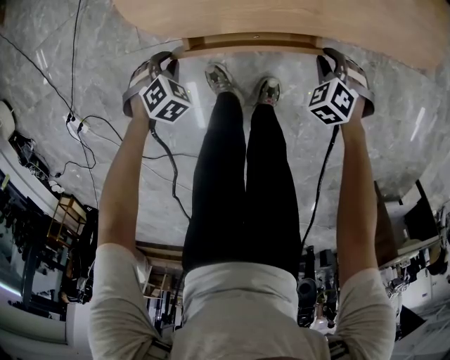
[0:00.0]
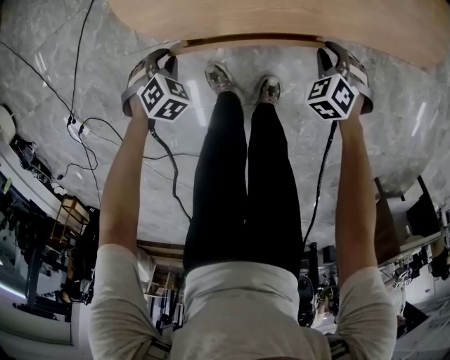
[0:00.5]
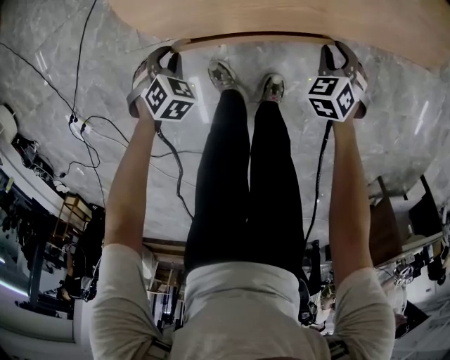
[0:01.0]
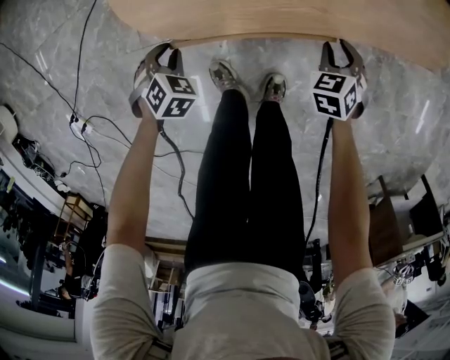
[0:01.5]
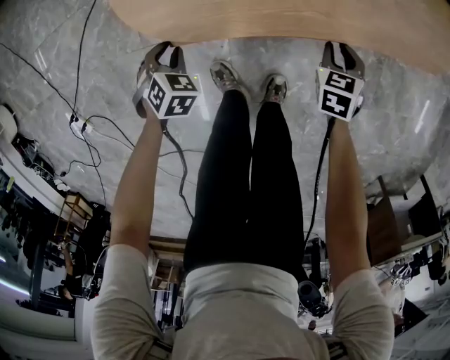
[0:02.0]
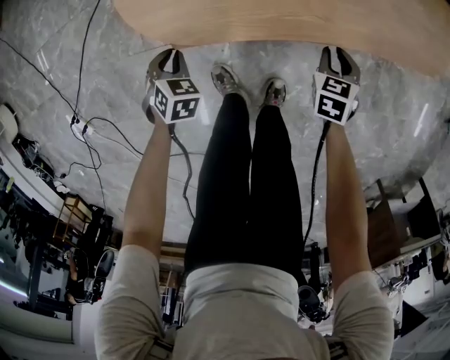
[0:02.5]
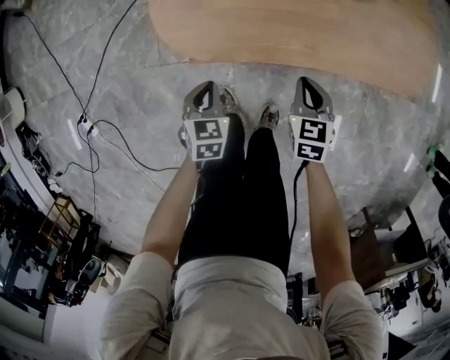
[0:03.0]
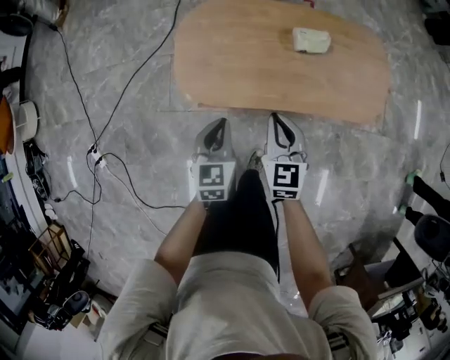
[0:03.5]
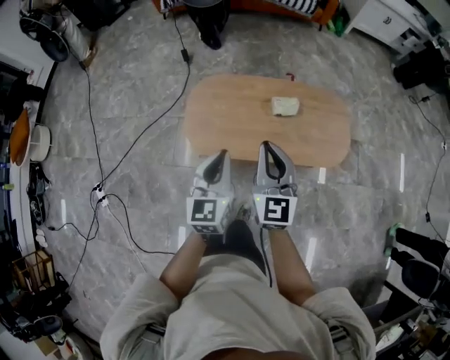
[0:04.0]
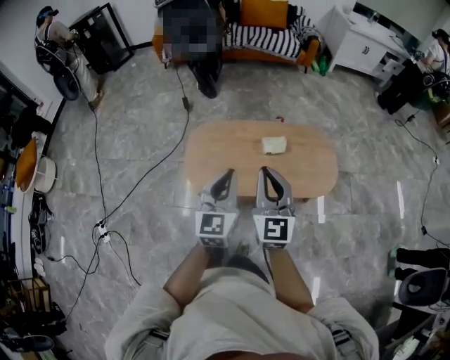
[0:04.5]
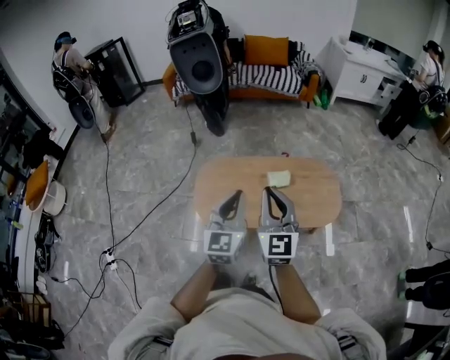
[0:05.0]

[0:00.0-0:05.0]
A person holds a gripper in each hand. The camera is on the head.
0.0 to 2.5 s: The right gripper rotates around the line of its fingers by approximately 50 degrees, clockwise from behind. The left gripper rotates some 30 degrees.
2.5 to 5.0 s: The grippers both shift upward by approximately 70 cm. The left gripper points its fingers about 70 degrees further upward. Meanwhile the right gripper tips its fingers upward by roughly 60 degrees, and closes.

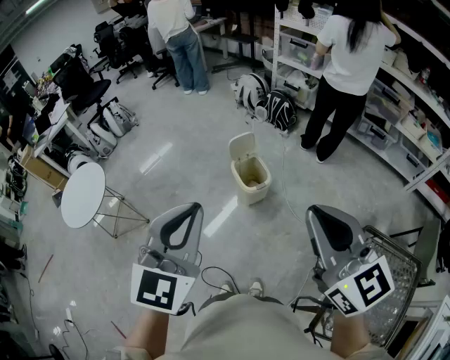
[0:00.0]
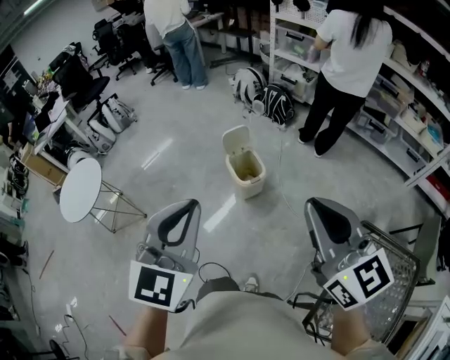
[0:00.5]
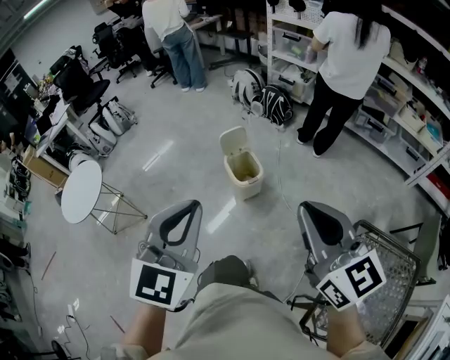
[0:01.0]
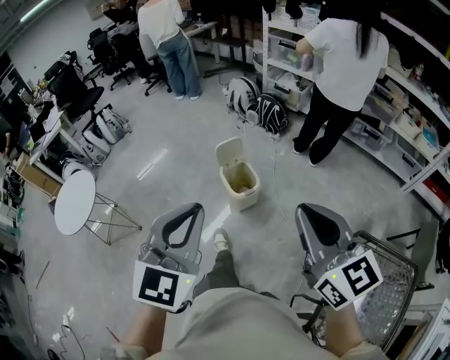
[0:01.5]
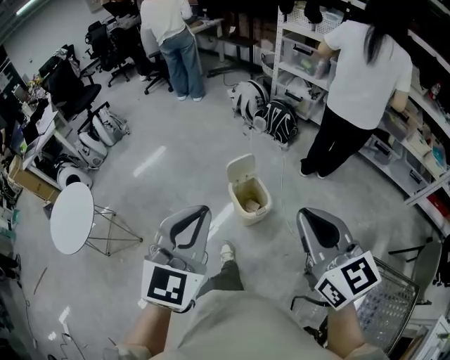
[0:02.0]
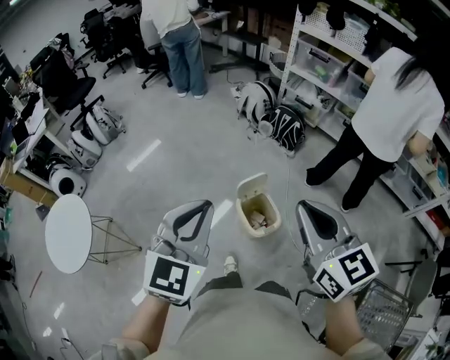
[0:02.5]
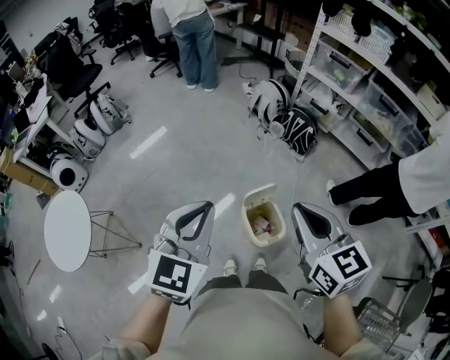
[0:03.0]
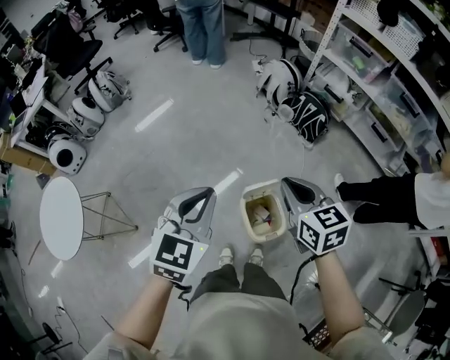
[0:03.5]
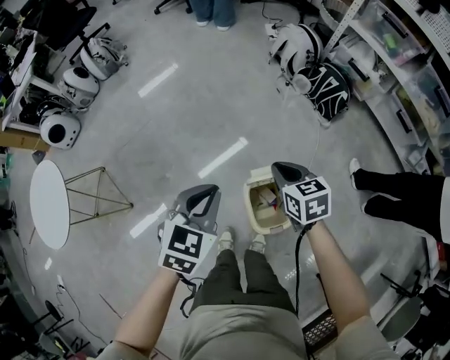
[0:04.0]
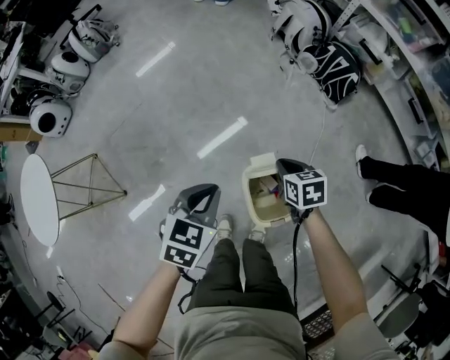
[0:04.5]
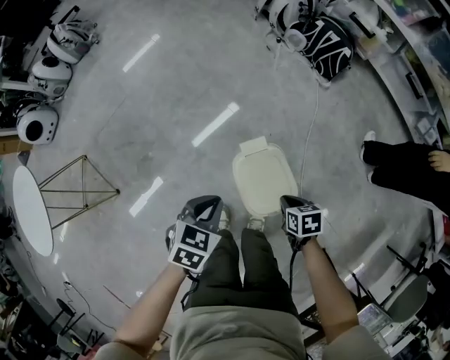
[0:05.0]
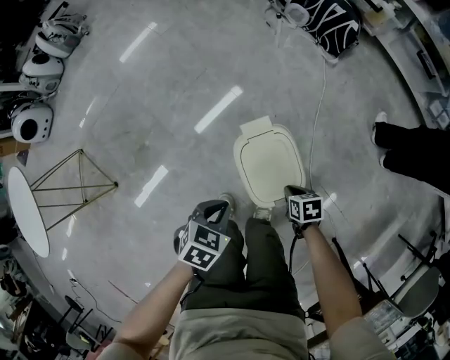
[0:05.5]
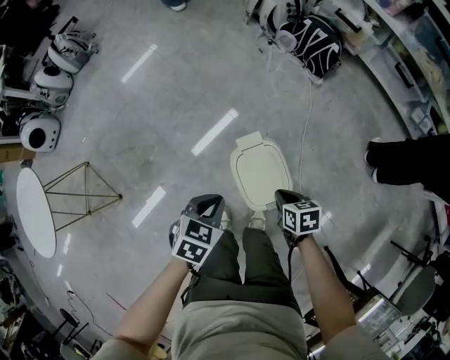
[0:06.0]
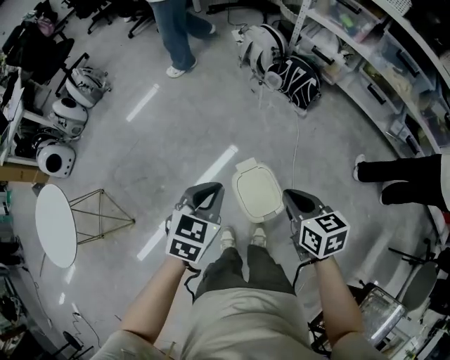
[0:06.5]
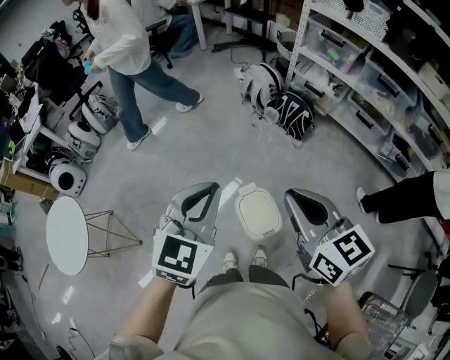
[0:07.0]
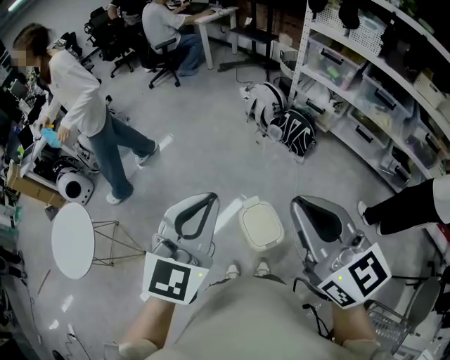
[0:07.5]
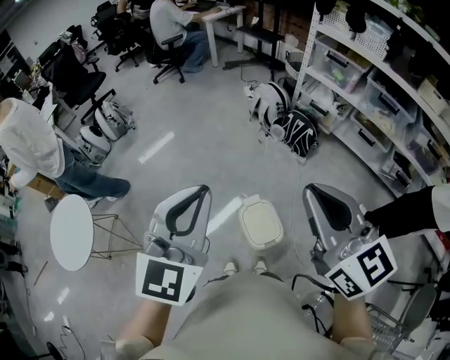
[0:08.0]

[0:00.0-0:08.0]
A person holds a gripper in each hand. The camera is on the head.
0.0 to 2.0 s: Both grippers move forward, about 20 cm.
2.0 to 4.0 s: The grippers both shift forward and downward by some 50 cm. The left gripper swivels some 30 degrees; the right gripper points its fingers some 40 degrees further downward.
4.0 to 6.0 s: Both grippers move downward and backward, some 25 cm. The right gripper turns by roughly 30 degrees, while the left gripper changes its angle by about 20 degrees.
6.0 to 8.0 s: The two grippers go about 60 cm upward. The left gripper points its fingers approximately 50 degrees further upward. Meanwhile the right gripper tips its fingers upward by approximately 60 degrees.

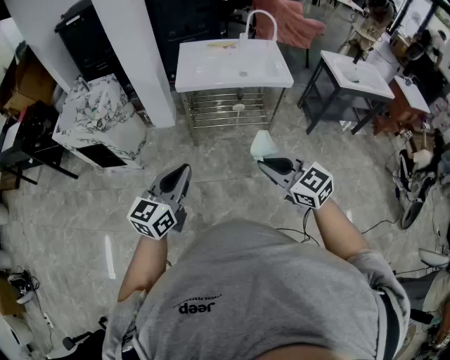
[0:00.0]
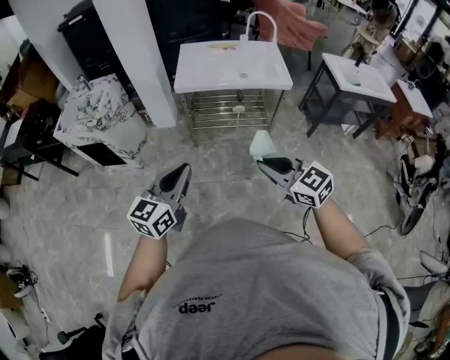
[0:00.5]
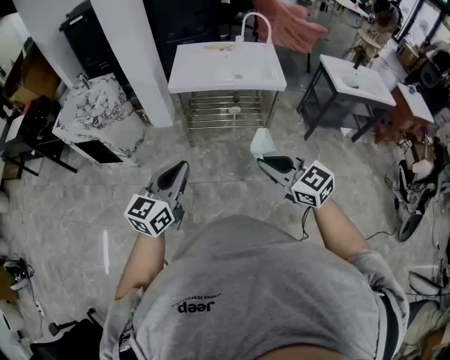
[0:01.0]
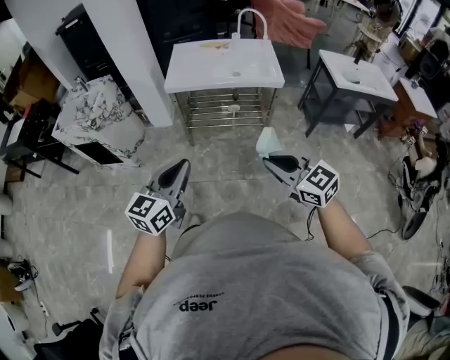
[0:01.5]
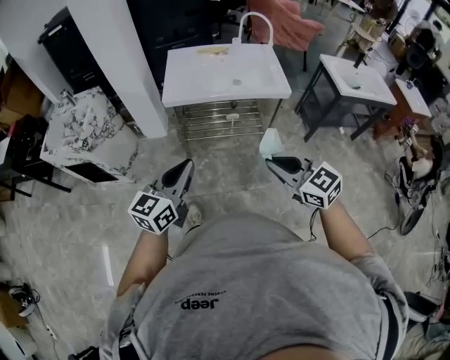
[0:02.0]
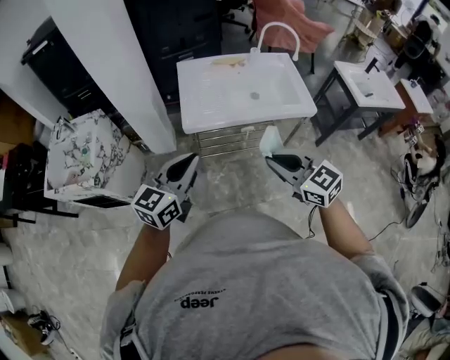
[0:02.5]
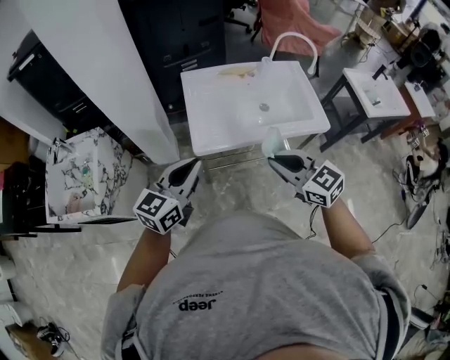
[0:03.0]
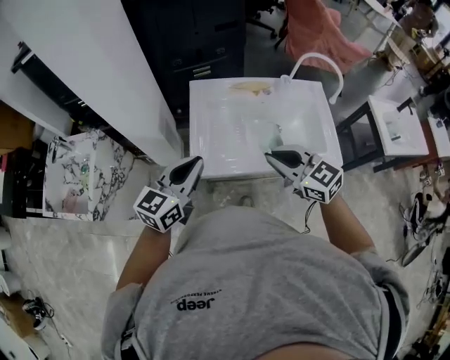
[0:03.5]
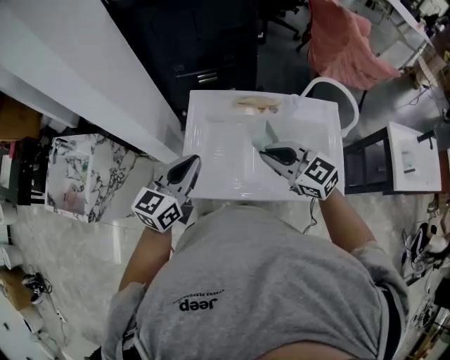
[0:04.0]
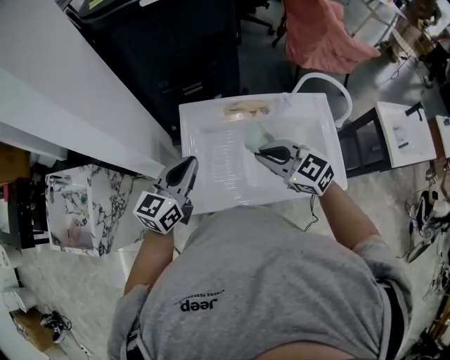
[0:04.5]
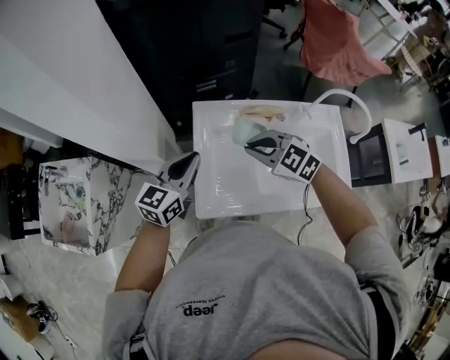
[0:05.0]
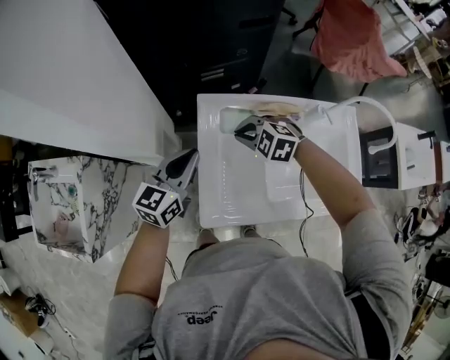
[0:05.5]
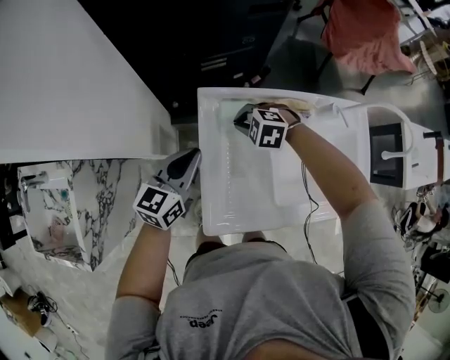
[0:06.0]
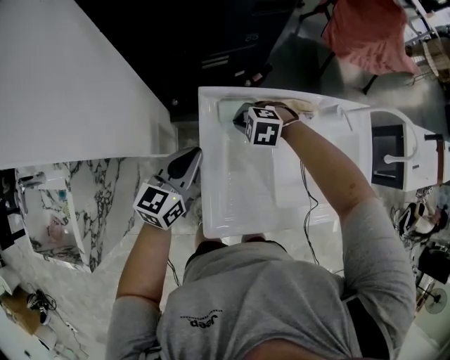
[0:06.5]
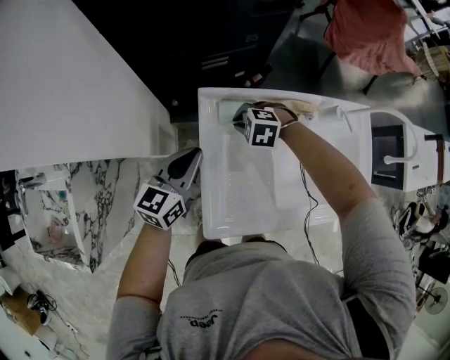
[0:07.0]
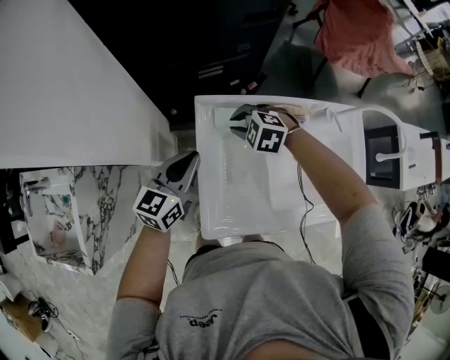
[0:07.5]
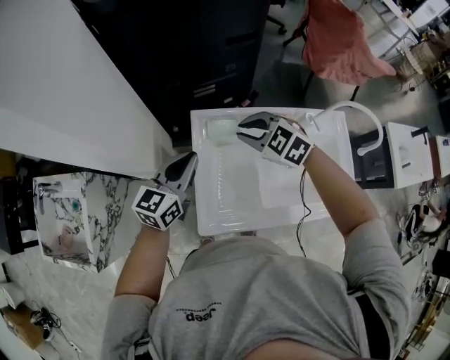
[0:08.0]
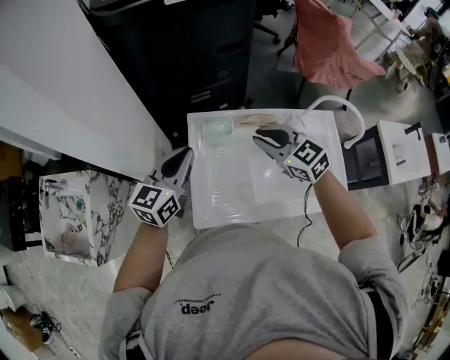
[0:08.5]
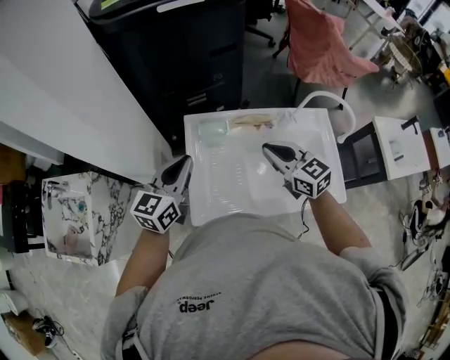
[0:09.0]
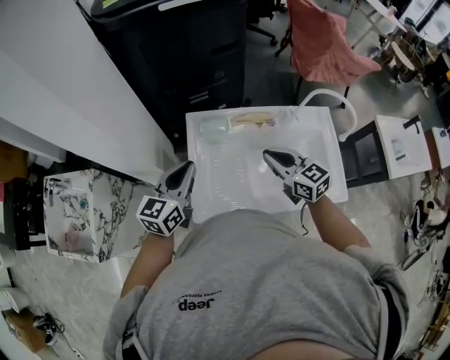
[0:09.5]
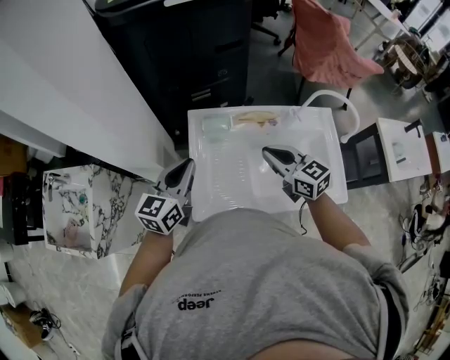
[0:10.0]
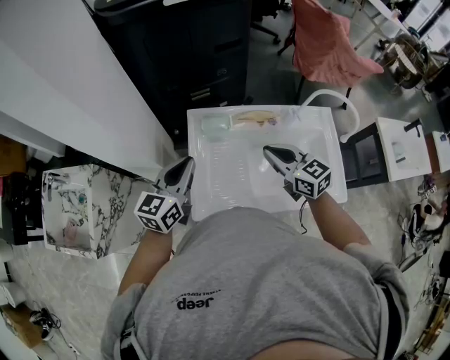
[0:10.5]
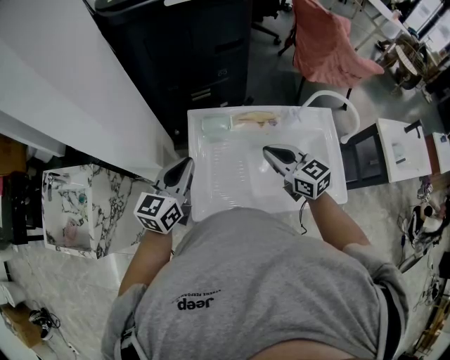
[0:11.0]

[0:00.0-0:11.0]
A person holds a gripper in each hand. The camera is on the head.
0.0 to 2.0 s: Both grippers travel together forward and to the right, approximately 15 cm.
2.0 to 3.5 s: Both grippers are carried forward, approximately 50 cm.
3.5 to 5.5 s: The two grippers go approximately 30 cm forward and downward. The right gripper angles its fingers downward, by about 30 degrees.
5.5 to 7.5 s: The left gripper changes place by roughly 5 cm, while the right gripper shifts approximately 5 cm forward.
7.5 to 9.0 s: The left gripper travels upward and backward by some 15 cm; the right gripper heads upward, backward and to the right, covering roughly 30 cm, and tips its fingers upward by roughly 40 degrees.
9.0 to 11.0 s: The grippers stay close to where they were, moving slightly.

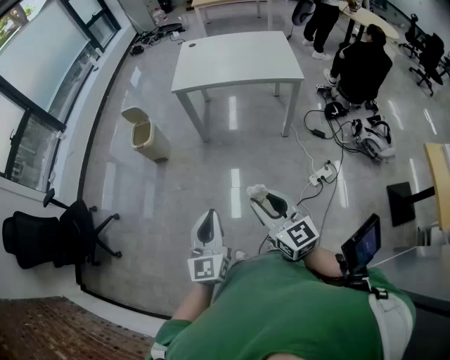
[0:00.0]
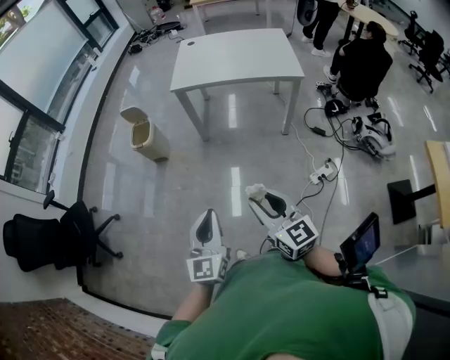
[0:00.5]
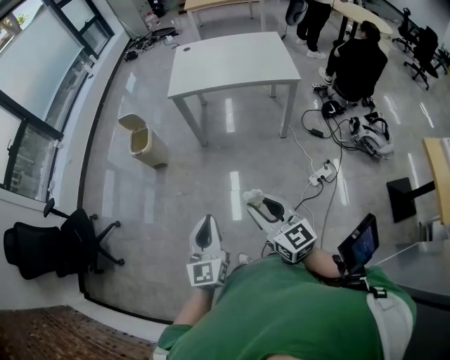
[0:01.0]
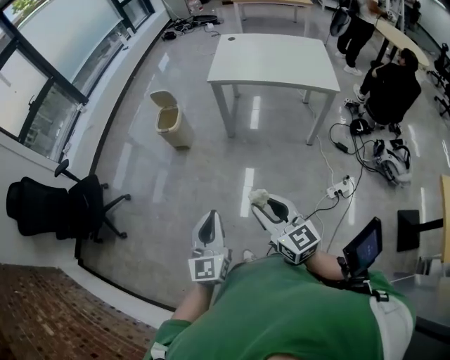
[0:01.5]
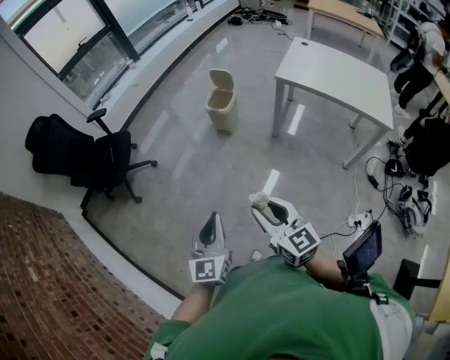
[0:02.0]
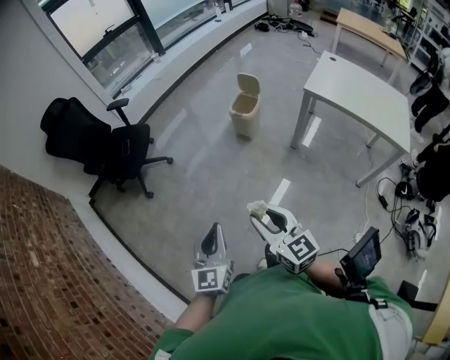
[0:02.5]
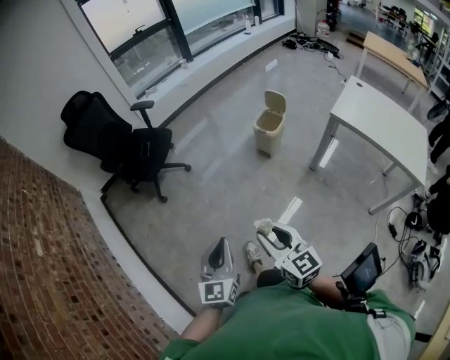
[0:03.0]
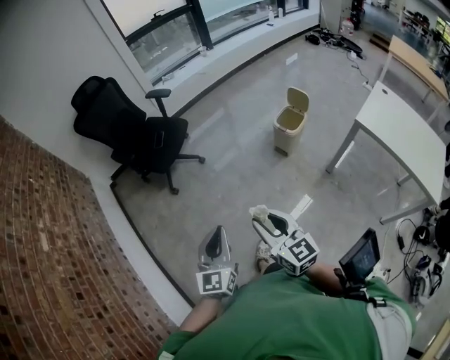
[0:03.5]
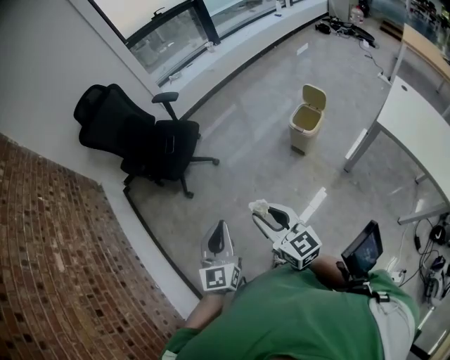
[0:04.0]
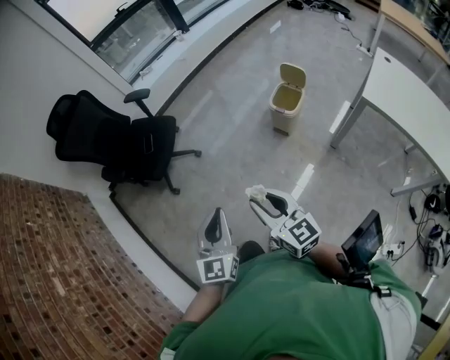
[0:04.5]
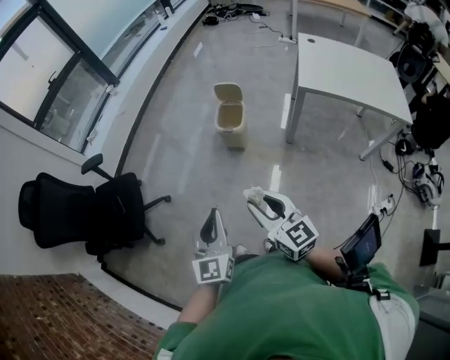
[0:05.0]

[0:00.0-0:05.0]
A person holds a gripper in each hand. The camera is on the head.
0.0 to 2.5 s: The right gripper moves about 35 cm, and rotates about 40 degrees. Meanwhile the left gripper shifts by roughly 30 cm, and turns by about 30 degrees.
2.5 to 5.0 s: The left gripper moves roughly 30 cm; the right gripper shifts by roughly 30 cm.
